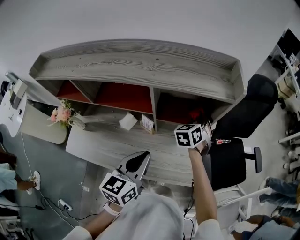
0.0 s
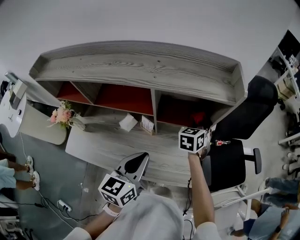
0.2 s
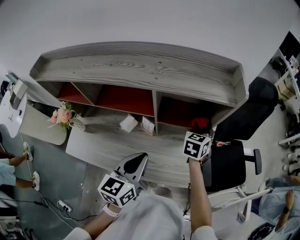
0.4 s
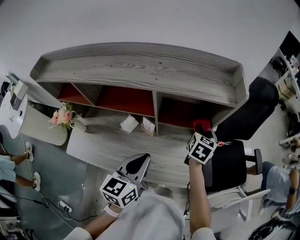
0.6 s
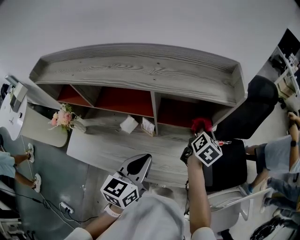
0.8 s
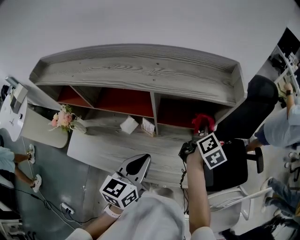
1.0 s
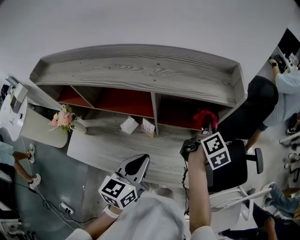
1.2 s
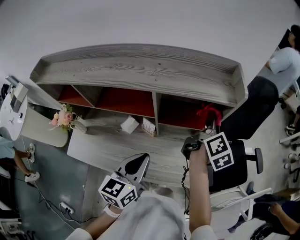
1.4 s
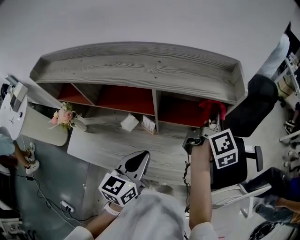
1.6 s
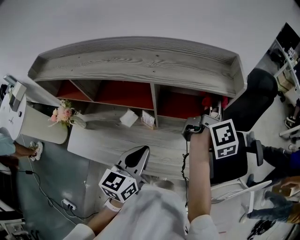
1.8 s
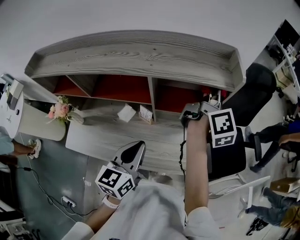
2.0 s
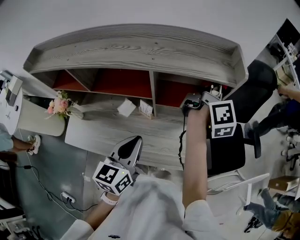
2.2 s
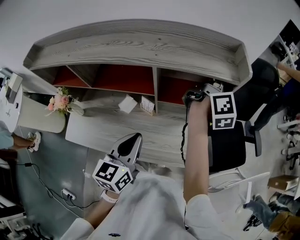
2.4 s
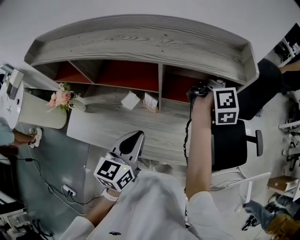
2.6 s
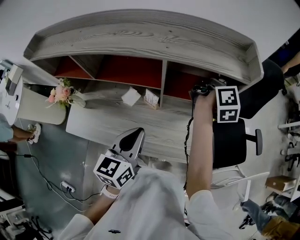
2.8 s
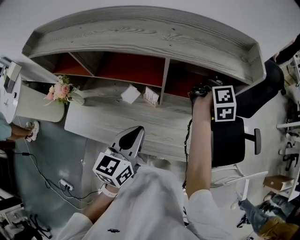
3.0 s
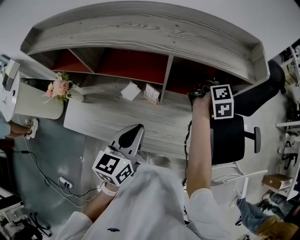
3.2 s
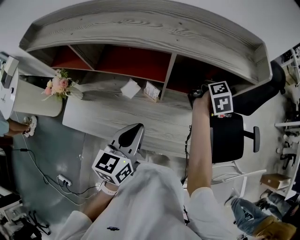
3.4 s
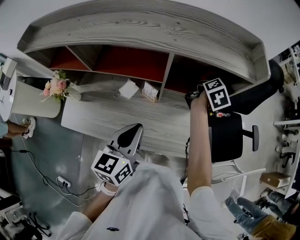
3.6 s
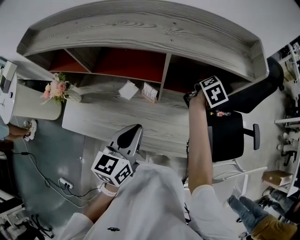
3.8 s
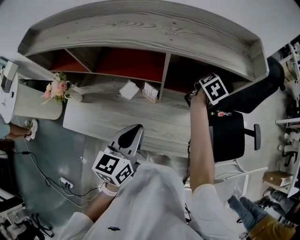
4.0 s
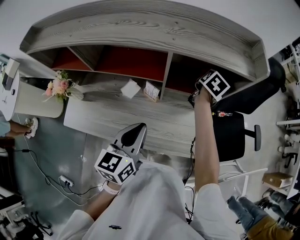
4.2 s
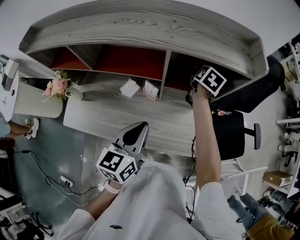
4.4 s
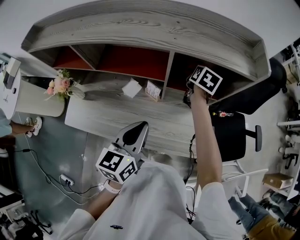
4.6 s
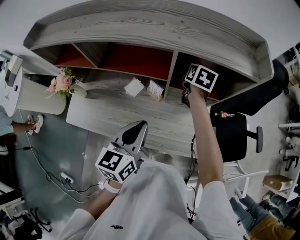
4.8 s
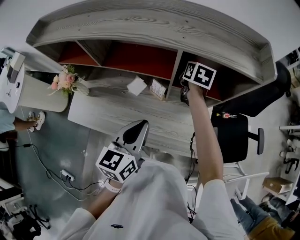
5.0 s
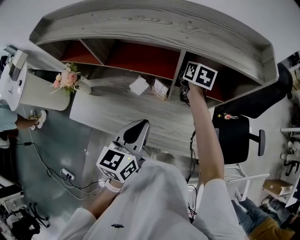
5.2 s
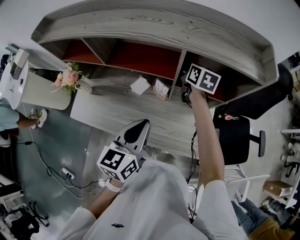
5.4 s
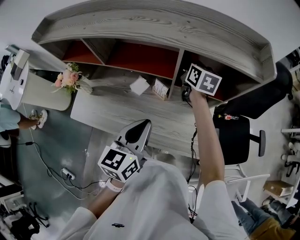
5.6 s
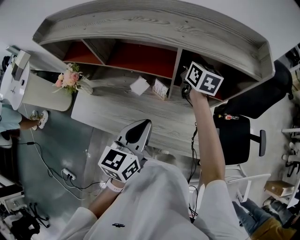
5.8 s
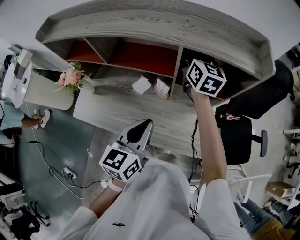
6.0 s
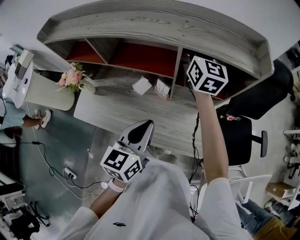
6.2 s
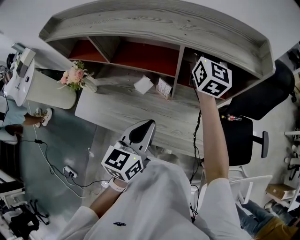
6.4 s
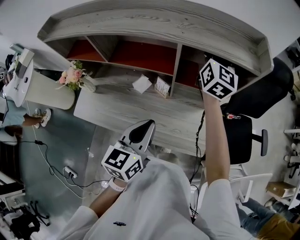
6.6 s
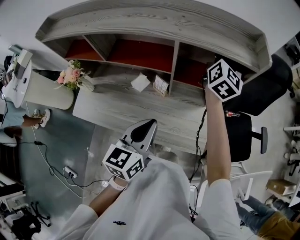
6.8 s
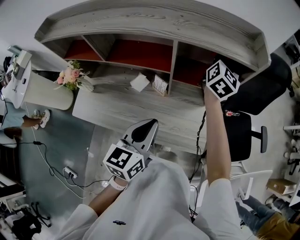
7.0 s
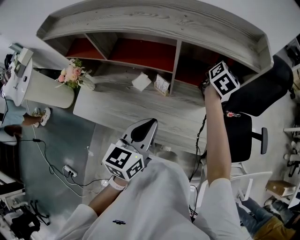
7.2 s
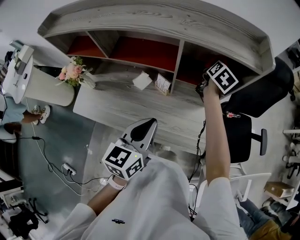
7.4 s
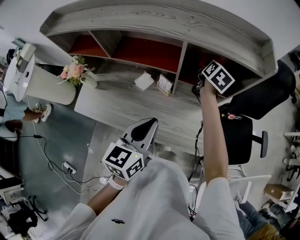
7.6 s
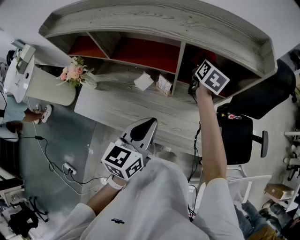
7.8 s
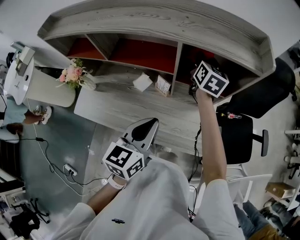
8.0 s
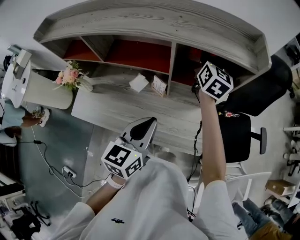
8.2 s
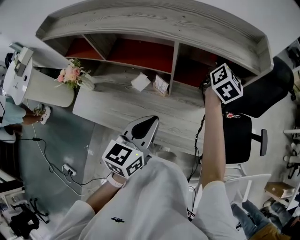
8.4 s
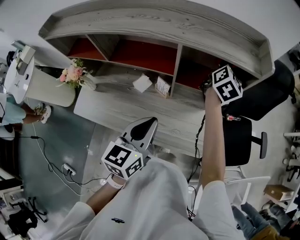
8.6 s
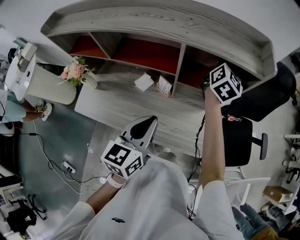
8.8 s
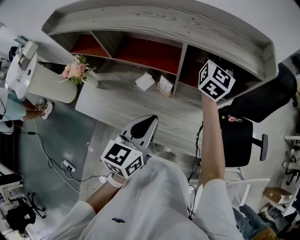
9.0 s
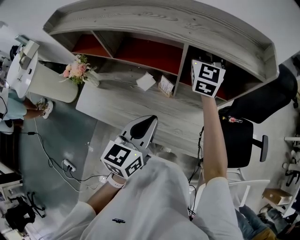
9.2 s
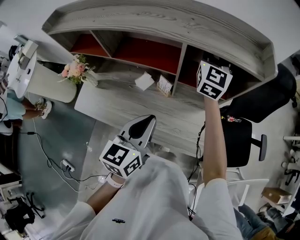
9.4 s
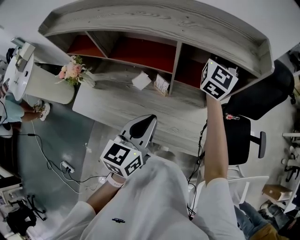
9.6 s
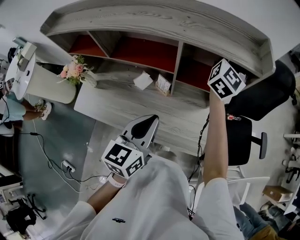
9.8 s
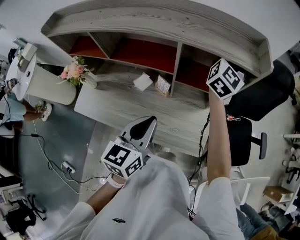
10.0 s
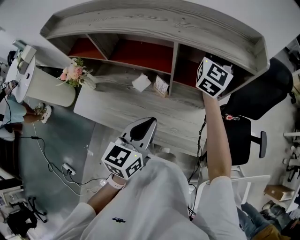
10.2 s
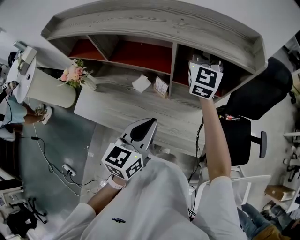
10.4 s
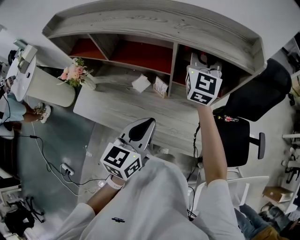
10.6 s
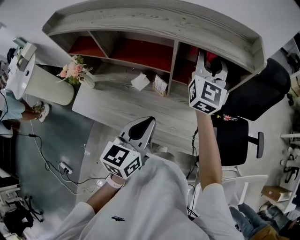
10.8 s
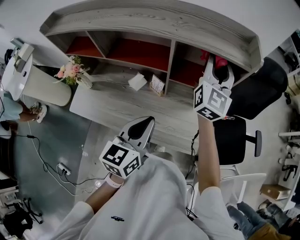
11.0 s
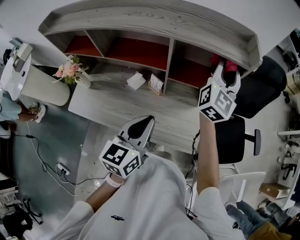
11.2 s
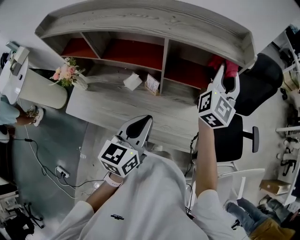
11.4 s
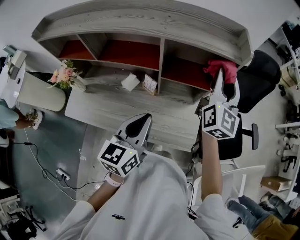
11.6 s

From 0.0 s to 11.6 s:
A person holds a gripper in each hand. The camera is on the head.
From 0.0 s to 1.4 s: The right gripper goes some 15 cm upward and to the right, and twists some 80 degrees clockwise, seen from behind.
From 1.4 s to 2.8 s: The right gripper is displaced forward by about 5 cm.
From 2.8 s to 4.4 s: The right gripper goes roughly 15 cm downward and to the left, and tilts its fingers roughly 40 degrees downward.
From 4.4 s to 5.8 s: The right gripper is displaced to the left and upward by some 15 cm, and turns by approximately 40 degrees.
From 5.8 s to 7.2 s: The right gripper goes approximately 20 cm to the right, and rotates approximately 40 degrees.
From 7.2 s to 8.8 s: The right gripper shifts approximately 5 cm upward, and travels to the left and back again, some 10 cm each way.
From 8.8 s to 10.2 s: The right gripper swings left and right, roughly 15 cm each way, with 2 reversals, and turns by approximately 30 degrees.
From 10.2 s to 11.6 s: The right gripper goes some 15 cm backward and to the right.

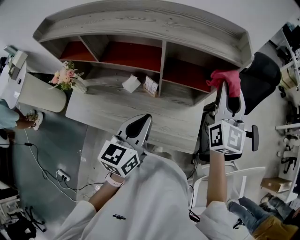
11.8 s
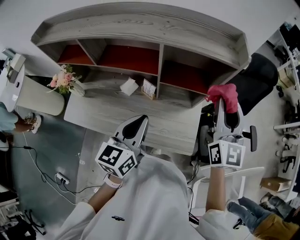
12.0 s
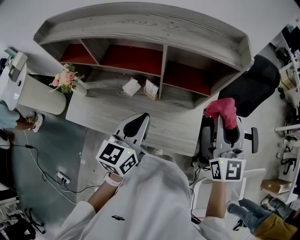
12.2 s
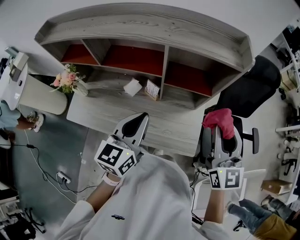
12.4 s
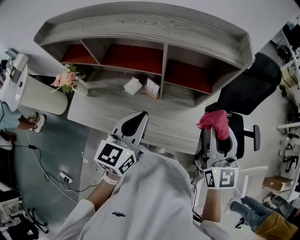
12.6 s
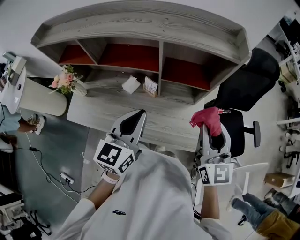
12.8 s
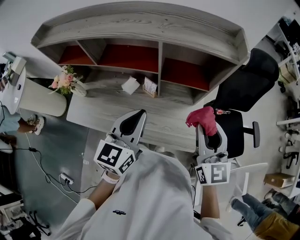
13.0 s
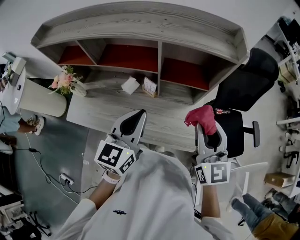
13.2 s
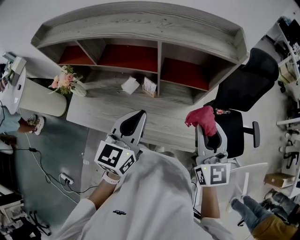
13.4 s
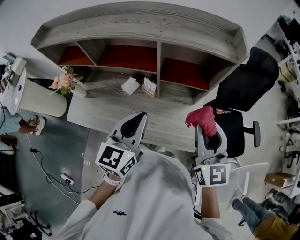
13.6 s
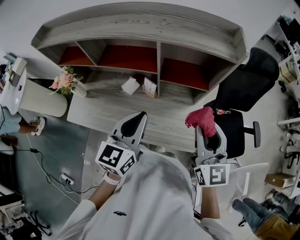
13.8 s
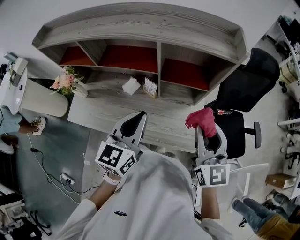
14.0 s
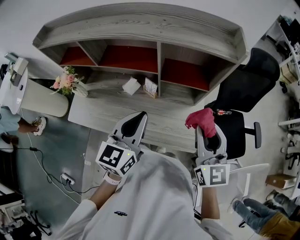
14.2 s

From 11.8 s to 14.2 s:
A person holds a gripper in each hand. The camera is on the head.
From 11.8 s to 13.0 s: The right gripper travels backward and downward by roughly 15 cm.
From 13.0 s to 14.2 s: The grippers move only a little.

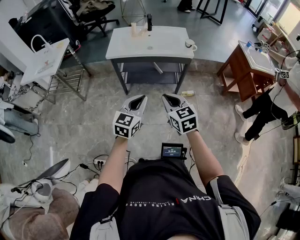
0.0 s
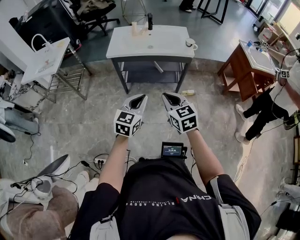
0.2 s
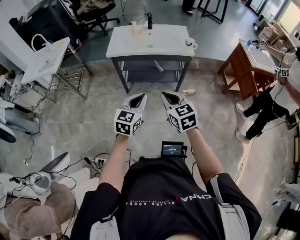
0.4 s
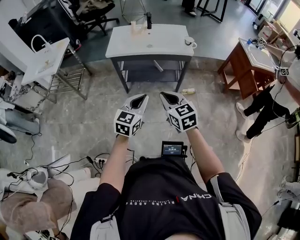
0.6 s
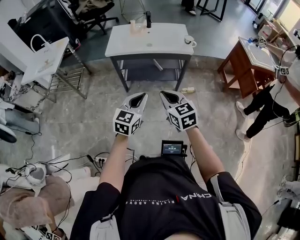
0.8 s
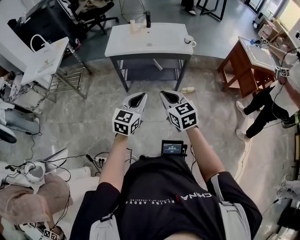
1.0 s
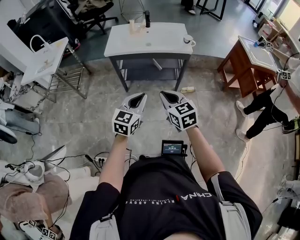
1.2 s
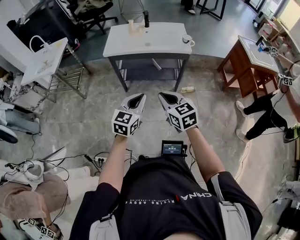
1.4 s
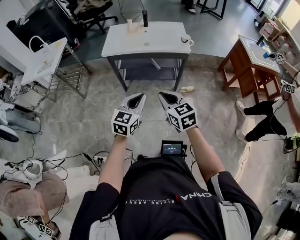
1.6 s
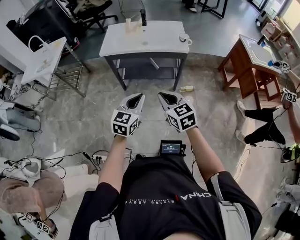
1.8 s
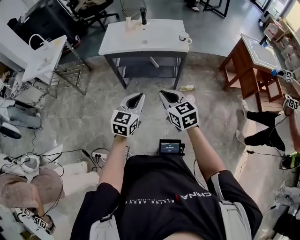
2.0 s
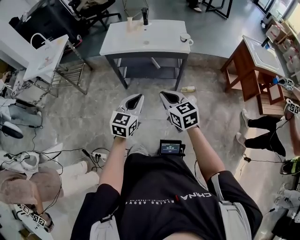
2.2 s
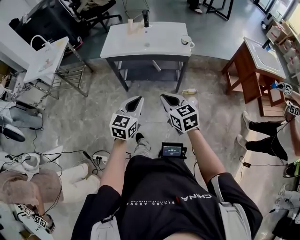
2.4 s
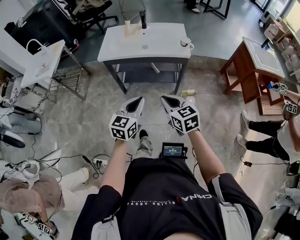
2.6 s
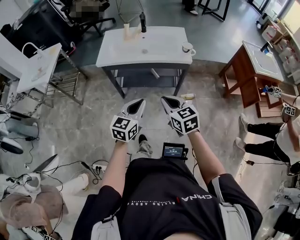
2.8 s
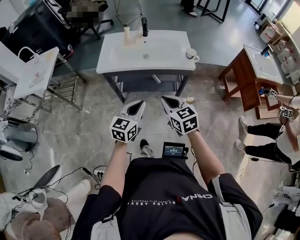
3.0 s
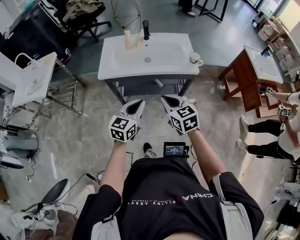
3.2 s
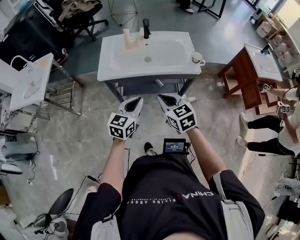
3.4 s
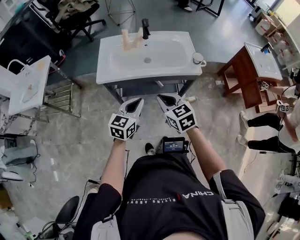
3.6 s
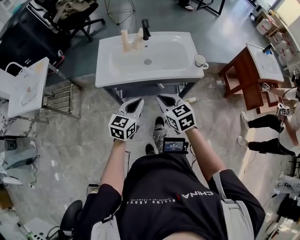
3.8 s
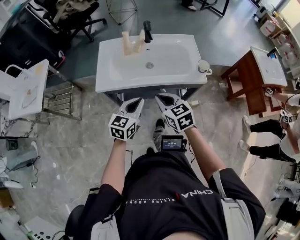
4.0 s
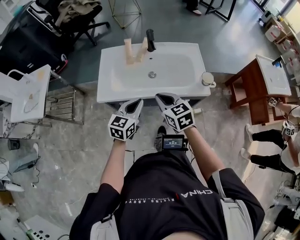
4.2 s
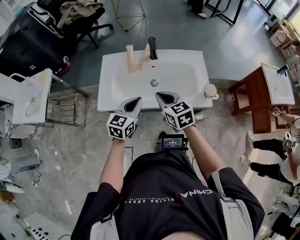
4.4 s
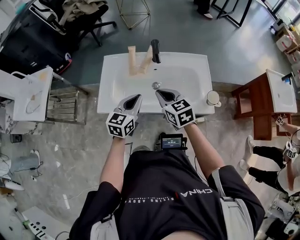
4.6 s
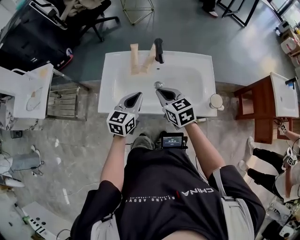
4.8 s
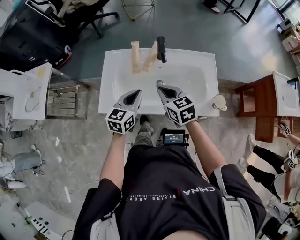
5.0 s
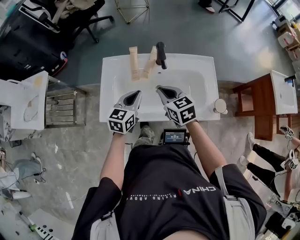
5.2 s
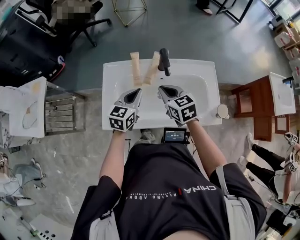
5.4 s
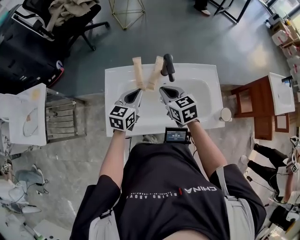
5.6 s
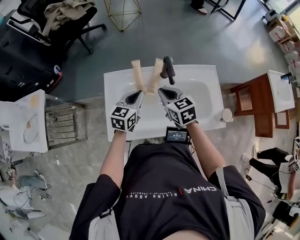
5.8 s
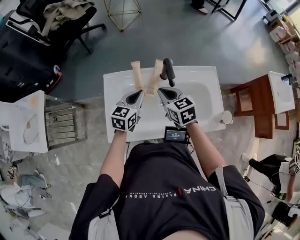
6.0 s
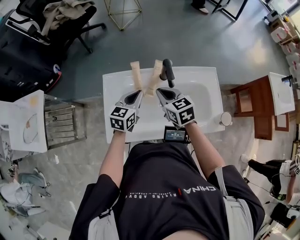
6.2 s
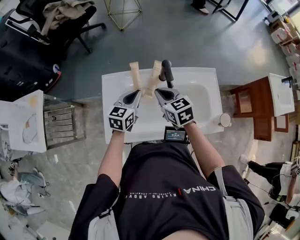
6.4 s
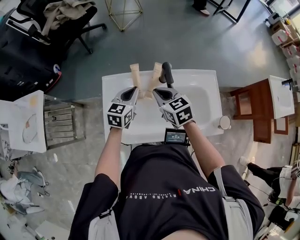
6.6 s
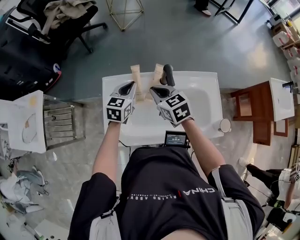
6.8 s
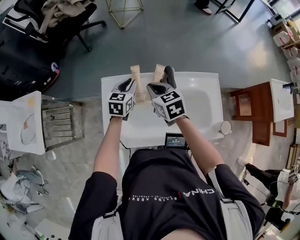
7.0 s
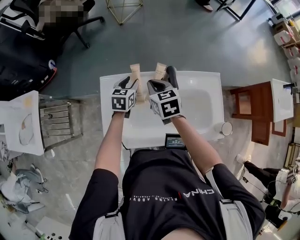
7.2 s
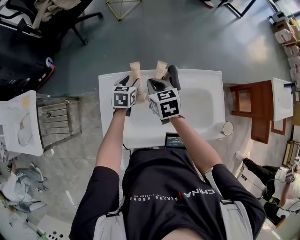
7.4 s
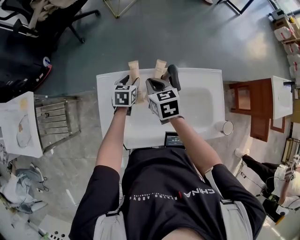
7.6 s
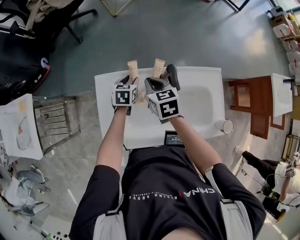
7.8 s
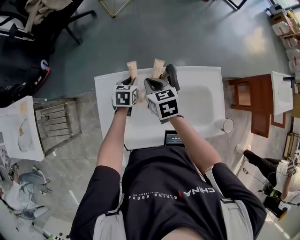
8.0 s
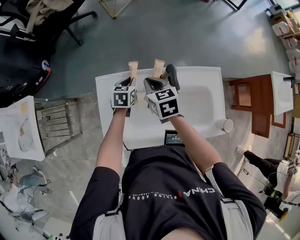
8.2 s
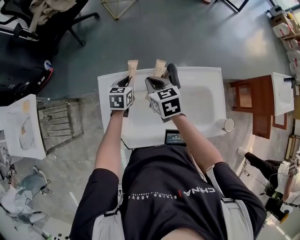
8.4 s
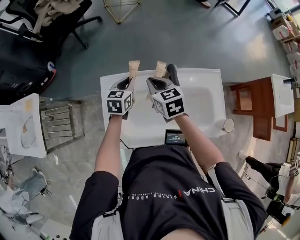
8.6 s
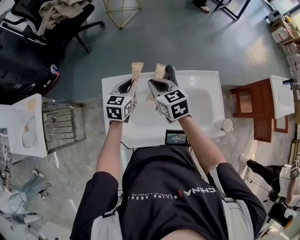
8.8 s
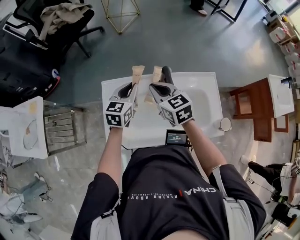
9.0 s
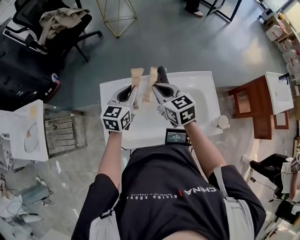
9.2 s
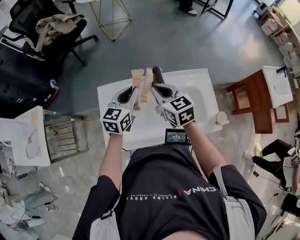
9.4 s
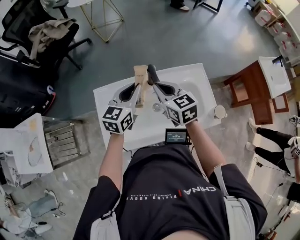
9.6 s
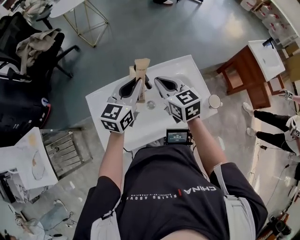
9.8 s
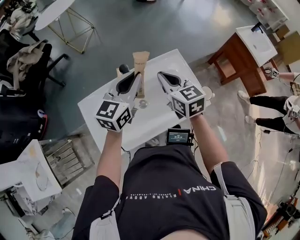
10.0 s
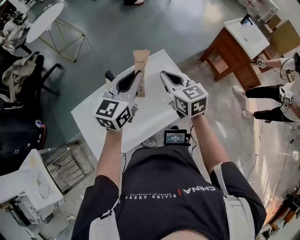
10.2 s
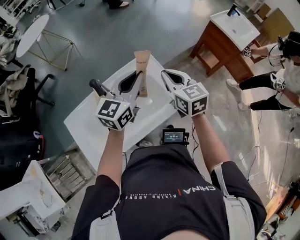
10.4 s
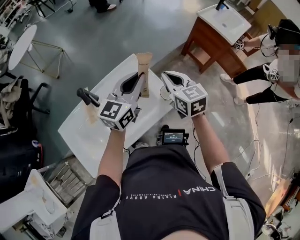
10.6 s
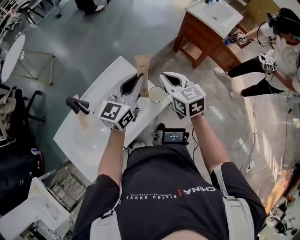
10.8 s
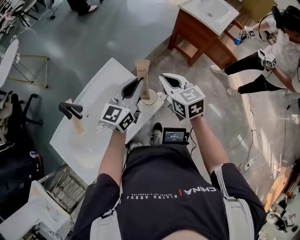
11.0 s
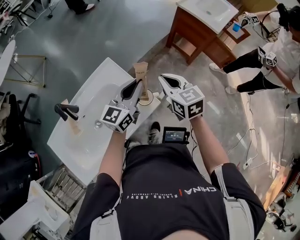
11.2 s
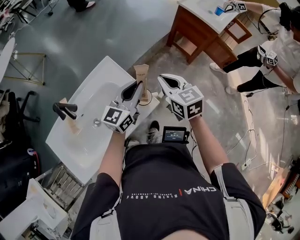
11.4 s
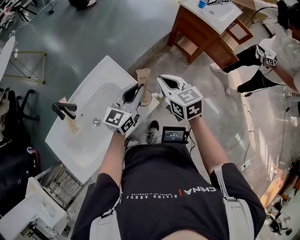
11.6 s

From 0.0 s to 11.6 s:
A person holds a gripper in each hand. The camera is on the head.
From 0.0 s to 1.4 s: The grippers make only small movements.
From 1.4 s to 2.8 s: The left gripper travels forward by about 10 cm; the right gripper travels forward and to the right by approximately 10 cm.
From 2.8 s to 4.4 s: The grippers both shift forward by roughly 40 cm.
From 4.4 s to 5.8 s: Both grippers move forward, roughly 20 cm.
From 5.8 s to 7.2 s: The right gripper travels forward by approximately 10 cm. Meanwhile the left gripper goes approximately 15 cm forward and downward, and opens its fingers.
From 7.2 s to 8.8 s: The left gripper moves upward, about 5 cm, and closes its fingers.
From 8.8 s to 10.2 s: The right gripper changes place by about 30 cm, and changes its angle by approximately 30 degrees. Meanwhile the left gripper changes place by about 30 cm, and swivels about 40 degrees.
From 10.2 s to 11.6 s: The right gripper goes approximately 25 cm to the right; the left gripper moves to the right and downward, roughly 30 cm.
